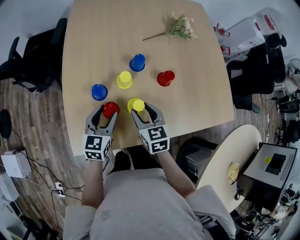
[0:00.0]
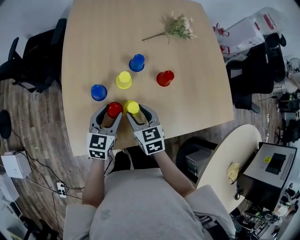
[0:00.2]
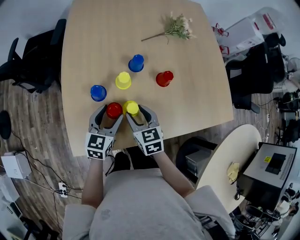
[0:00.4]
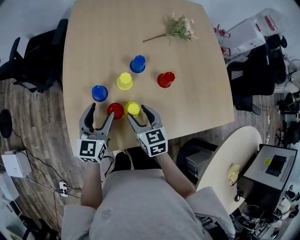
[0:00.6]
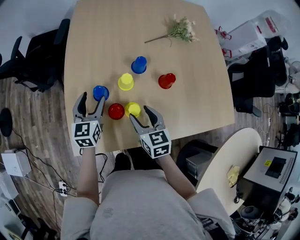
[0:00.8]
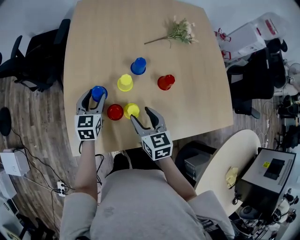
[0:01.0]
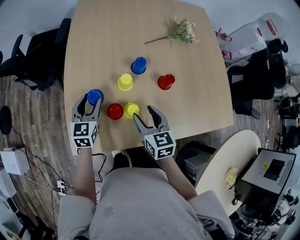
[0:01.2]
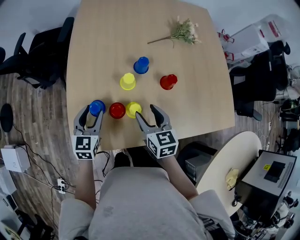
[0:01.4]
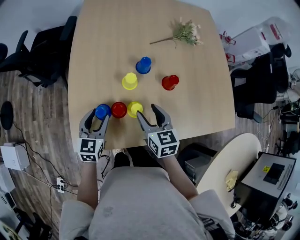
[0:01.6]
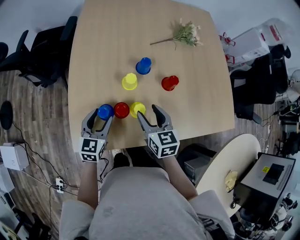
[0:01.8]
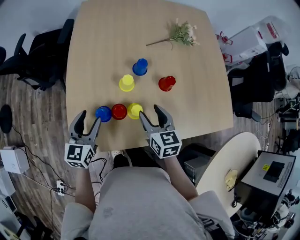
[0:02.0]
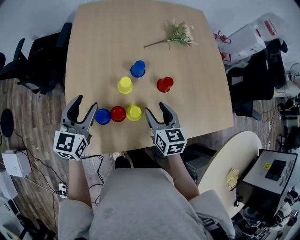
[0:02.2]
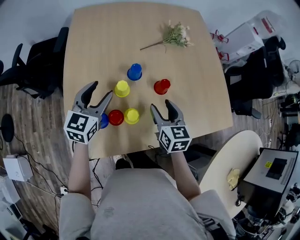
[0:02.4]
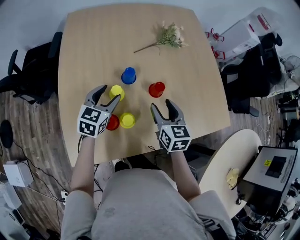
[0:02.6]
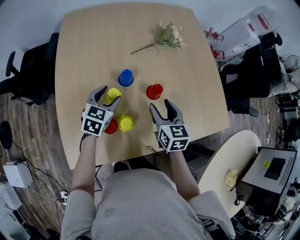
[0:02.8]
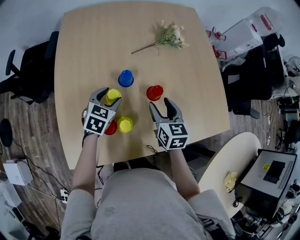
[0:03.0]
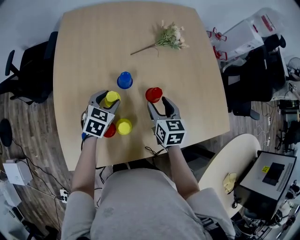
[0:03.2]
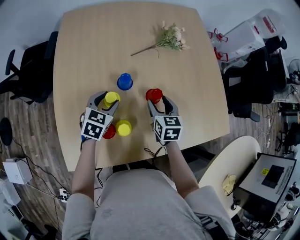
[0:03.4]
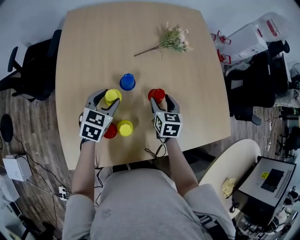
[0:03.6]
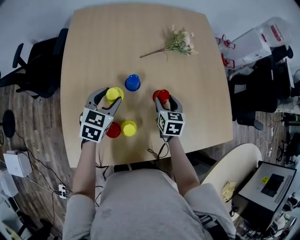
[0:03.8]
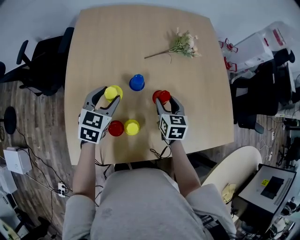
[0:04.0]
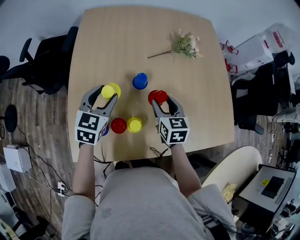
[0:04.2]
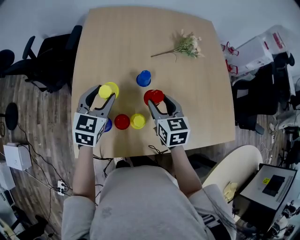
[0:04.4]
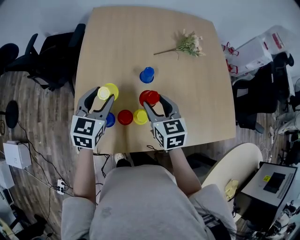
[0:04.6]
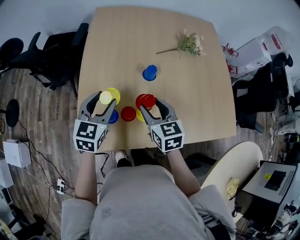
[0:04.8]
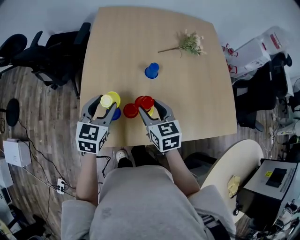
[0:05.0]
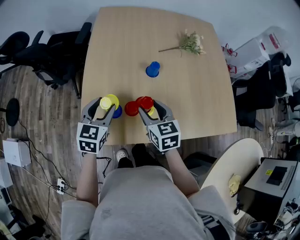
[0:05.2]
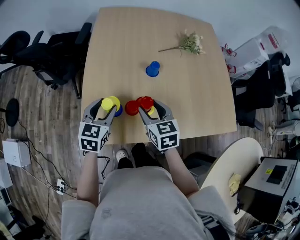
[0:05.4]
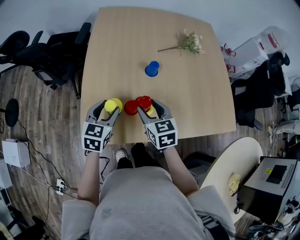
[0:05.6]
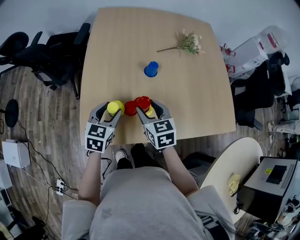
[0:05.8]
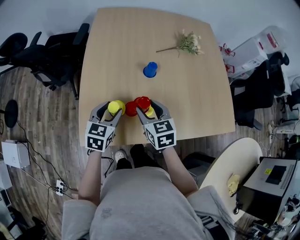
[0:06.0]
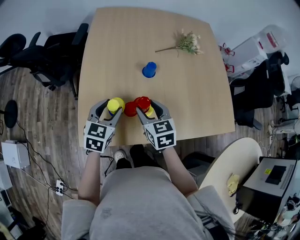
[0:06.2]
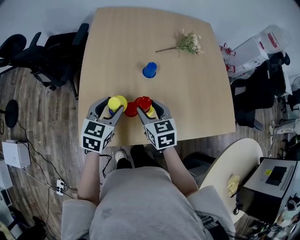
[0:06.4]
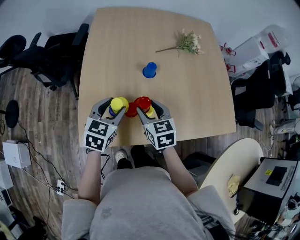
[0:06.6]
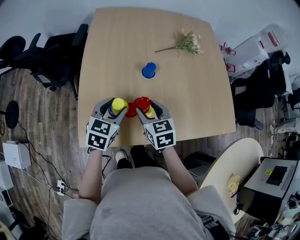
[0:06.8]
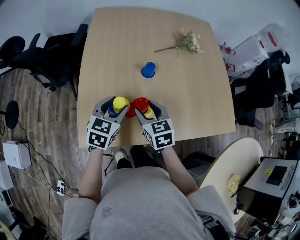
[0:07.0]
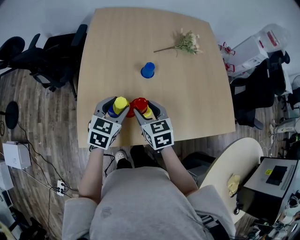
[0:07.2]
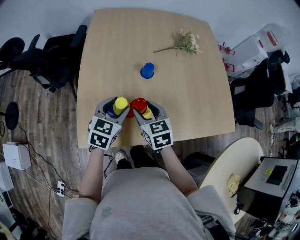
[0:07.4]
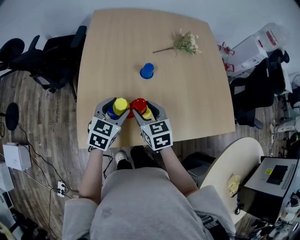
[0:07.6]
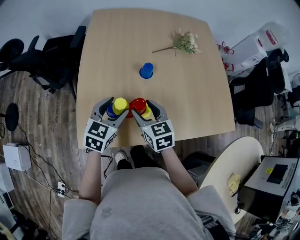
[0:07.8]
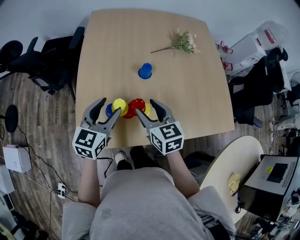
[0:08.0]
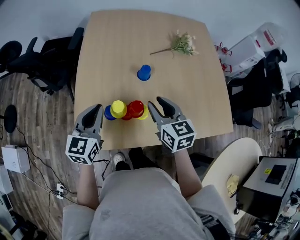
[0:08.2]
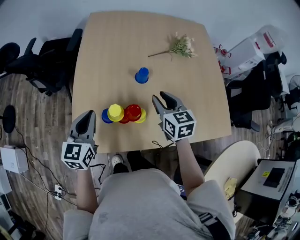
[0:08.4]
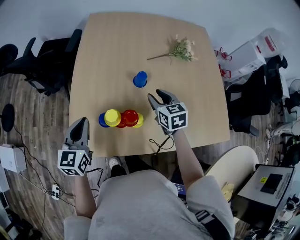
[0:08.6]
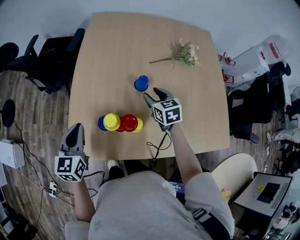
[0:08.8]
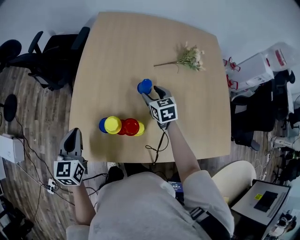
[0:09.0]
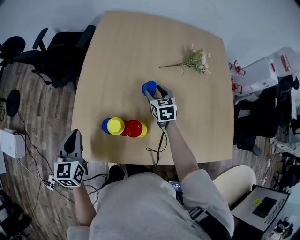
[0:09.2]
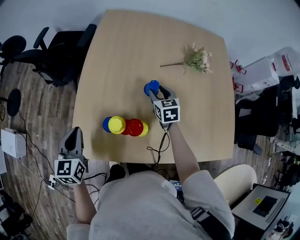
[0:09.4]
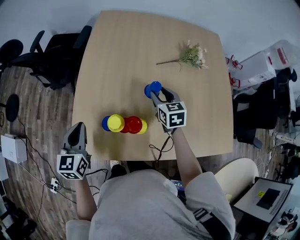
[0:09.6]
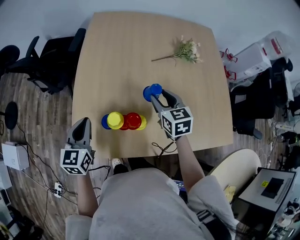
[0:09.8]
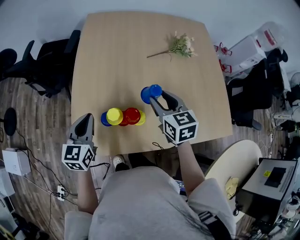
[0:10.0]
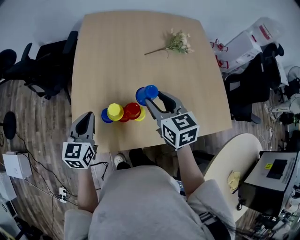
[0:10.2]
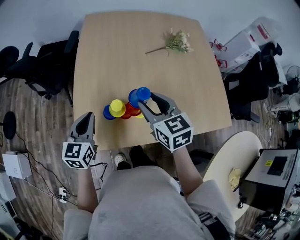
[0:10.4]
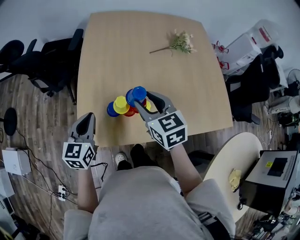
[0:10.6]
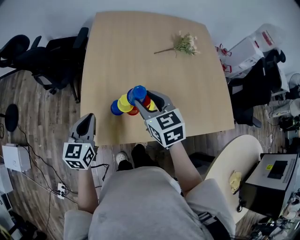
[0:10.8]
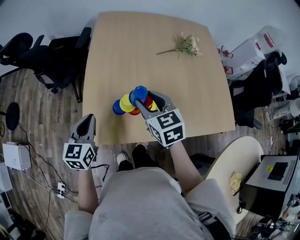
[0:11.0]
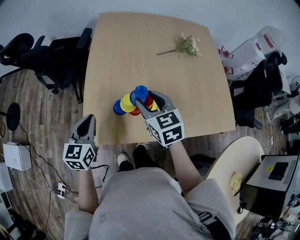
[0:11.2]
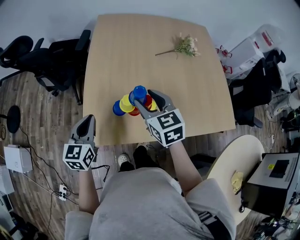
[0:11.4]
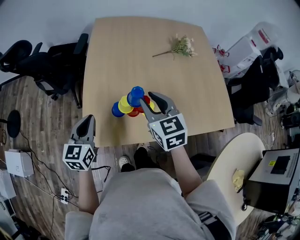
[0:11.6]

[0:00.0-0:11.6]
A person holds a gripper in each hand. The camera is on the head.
0:00.0 to 0:01.4: The left gripper heads to the left, covering roughly 5 cm.
0:01.4 to 0:02.8: The grippers both shift to the right and forward by approximately 15 cm. The left gripper rotates some 20 degrees.
0:02.8 to 0:04.4: The right gripper heads to the left, covering about 10 cm, and reaches approximately 10 cm downward, then returns. The left gripper travels upward and to the left by about 15 cm.
0:04.4 to 0:05.8: The left gripper travels backward and downward by roughly 15 cm, while the right gripper moves to the left and backward, some 15 cm.
0:05.8 to 0:07.2: The left gripper shifts roughly 5 cm to the right.
0:07.2 to 0:08.8: The left gripper heads to the left, covering some 10 cm, swivels some 30 degrees, and closes up. Meanwhile the right gripper travels forward and to the right by roughly 15 cm.
0:08.8 to 0:10.2: The right gripper moves upward and backward, roughly 15 cm.
0:10.2 to 0:11.6: The two grippers go approximately 5 cm to the left.

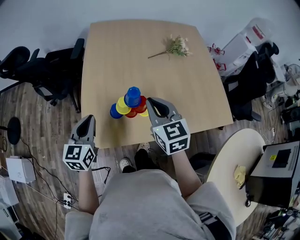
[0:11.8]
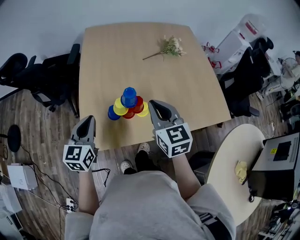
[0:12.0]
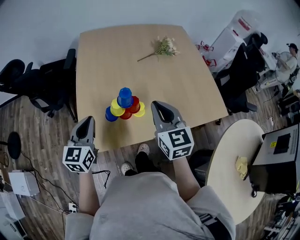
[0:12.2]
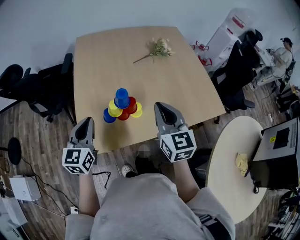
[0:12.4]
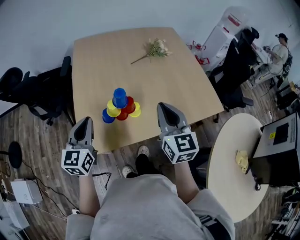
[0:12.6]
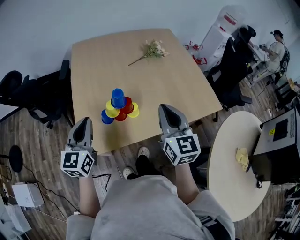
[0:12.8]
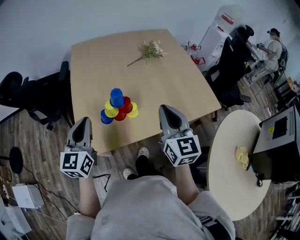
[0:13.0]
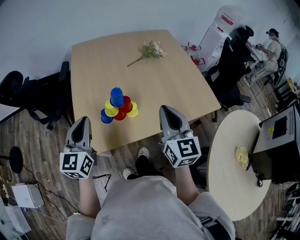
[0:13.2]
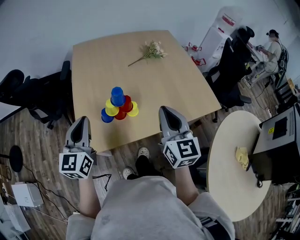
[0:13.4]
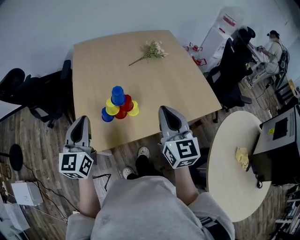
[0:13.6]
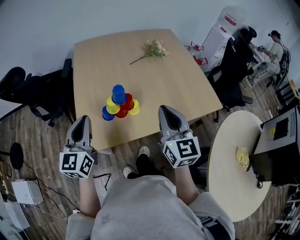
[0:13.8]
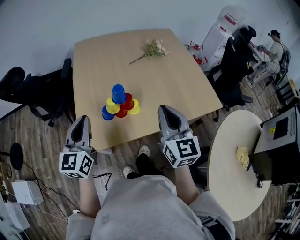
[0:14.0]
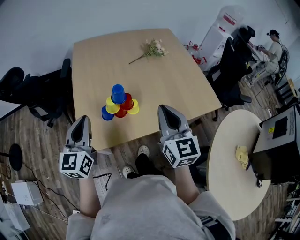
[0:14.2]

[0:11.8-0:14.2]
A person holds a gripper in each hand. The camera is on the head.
0:11.8 to 0:13.0: The right gripper heads to the right, backward and upward, covering some 15 cm, and rotates approximately 30 degrees. Meanwhile the left gripper heads upward, covering some 10 cm.
0:13.0 to 0:14.2: There are only small adjustments of the grippers.

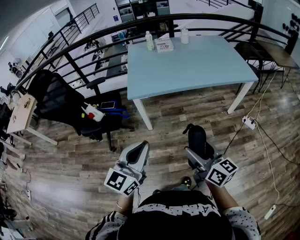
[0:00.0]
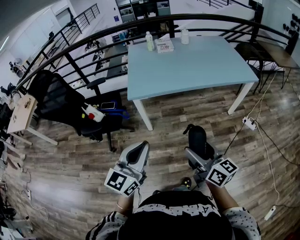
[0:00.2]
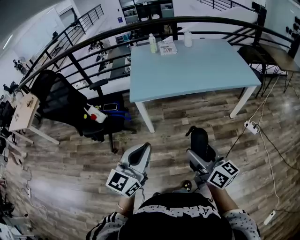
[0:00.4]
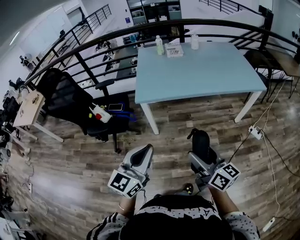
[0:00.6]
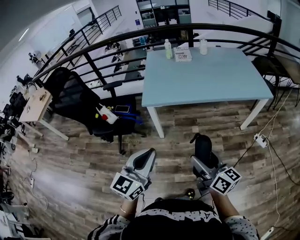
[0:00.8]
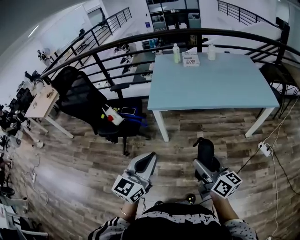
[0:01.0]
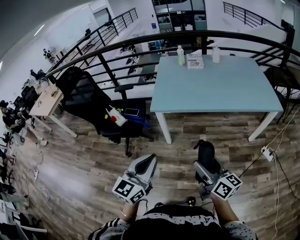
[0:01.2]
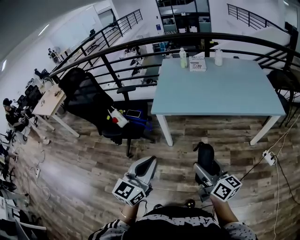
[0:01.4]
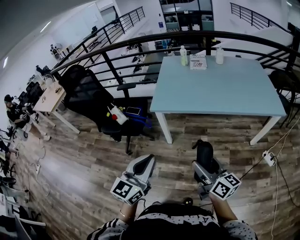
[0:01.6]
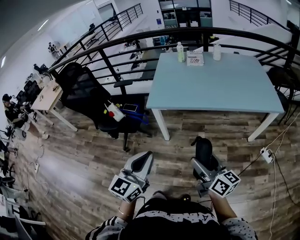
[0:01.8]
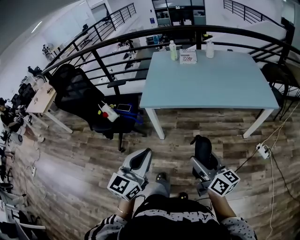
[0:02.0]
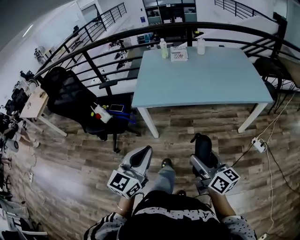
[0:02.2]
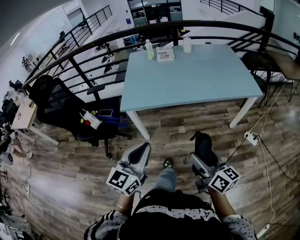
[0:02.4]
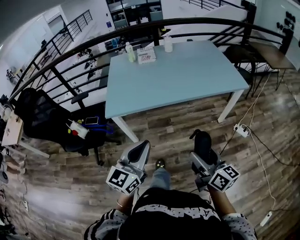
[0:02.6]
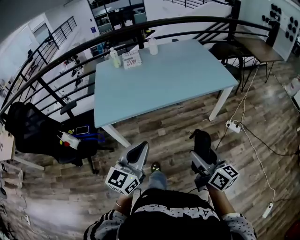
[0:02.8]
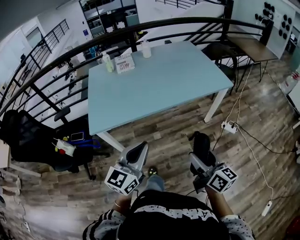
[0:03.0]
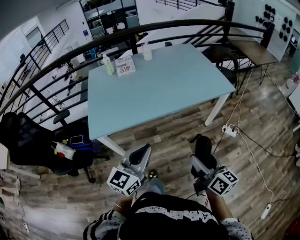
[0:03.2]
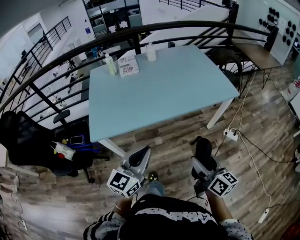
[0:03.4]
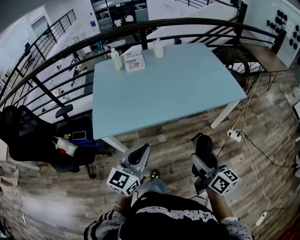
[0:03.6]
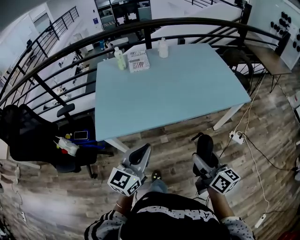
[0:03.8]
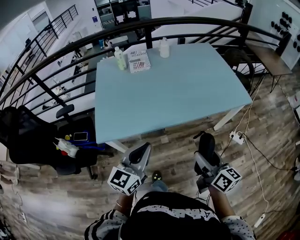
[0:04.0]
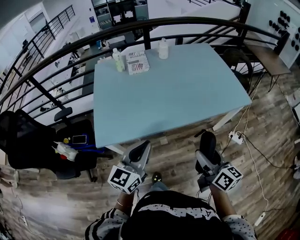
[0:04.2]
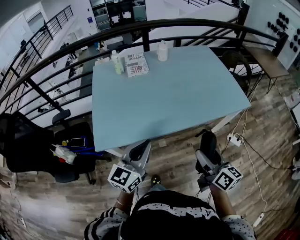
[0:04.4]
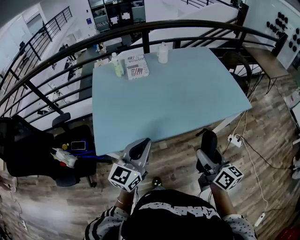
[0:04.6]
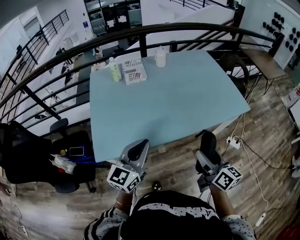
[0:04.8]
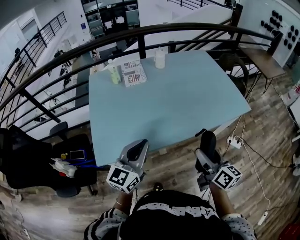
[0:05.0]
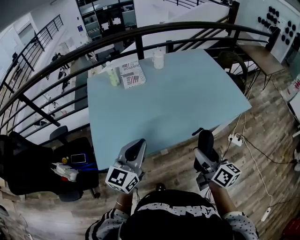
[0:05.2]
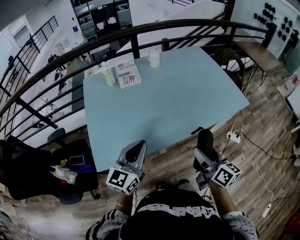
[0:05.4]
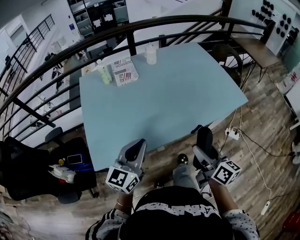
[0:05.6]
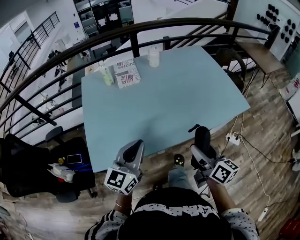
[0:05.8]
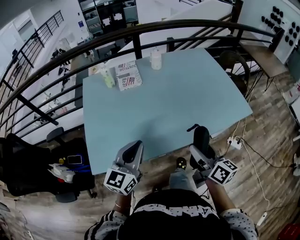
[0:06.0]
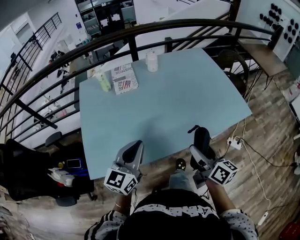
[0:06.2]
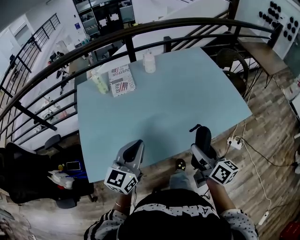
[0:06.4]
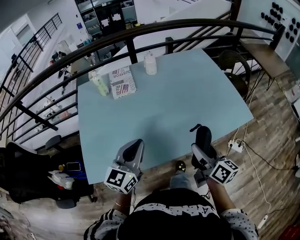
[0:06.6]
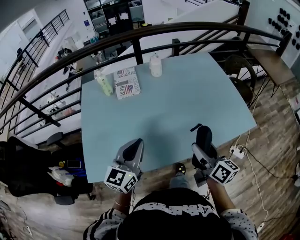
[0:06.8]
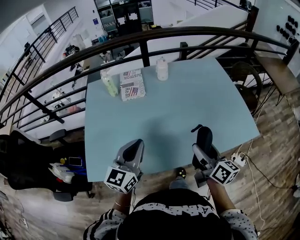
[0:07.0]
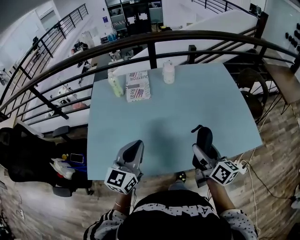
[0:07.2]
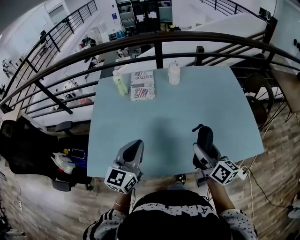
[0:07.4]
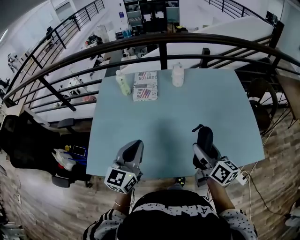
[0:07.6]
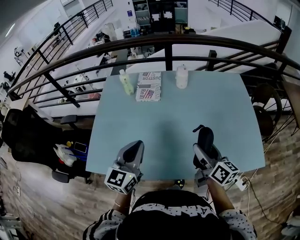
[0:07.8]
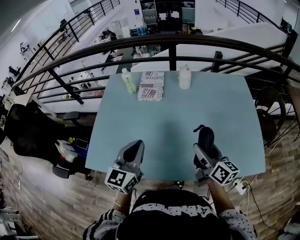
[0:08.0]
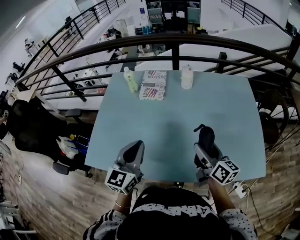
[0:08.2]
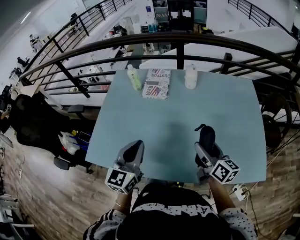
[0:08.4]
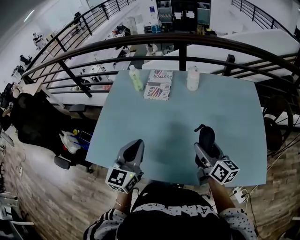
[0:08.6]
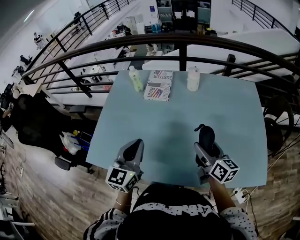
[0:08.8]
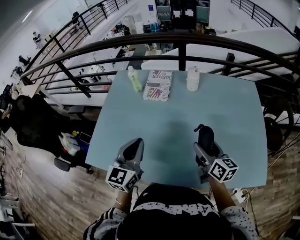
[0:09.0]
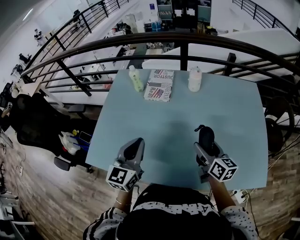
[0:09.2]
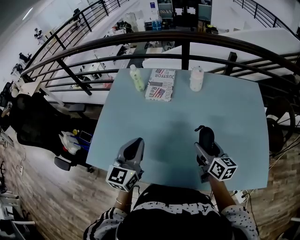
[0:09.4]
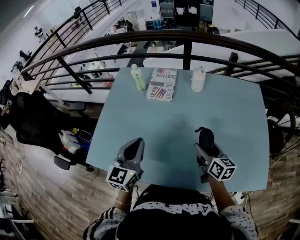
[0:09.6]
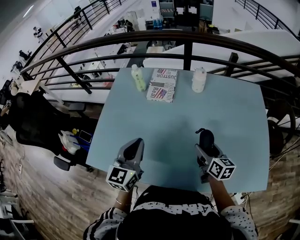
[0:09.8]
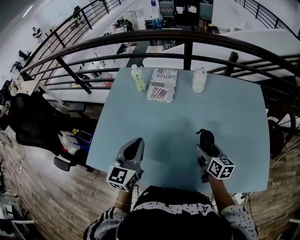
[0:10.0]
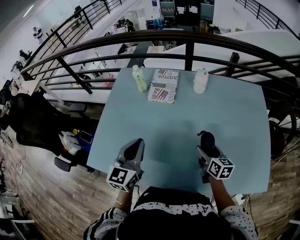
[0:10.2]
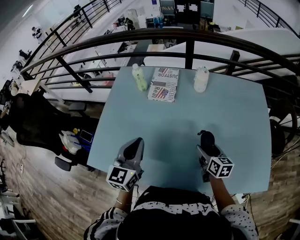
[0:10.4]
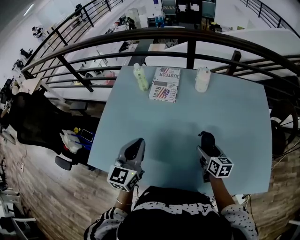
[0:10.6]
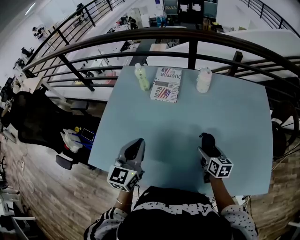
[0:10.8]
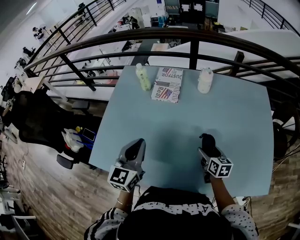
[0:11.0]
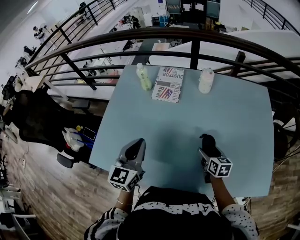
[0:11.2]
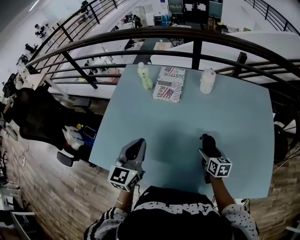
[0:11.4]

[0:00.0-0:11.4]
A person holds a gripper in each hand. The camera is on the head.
0:00.0 to 0:01.4: The right gripper moves forward, some 5 cm.
0:01.4 to 0:02.8: The left gripper goes about 20 cm to the right and forward, and changes its angle by approximately 20 degrees; the right gripper heads to the right, covering about 20 cm, and turns by approximately 20 degrees.
0:02.8 to 0:04.2: The right gripper shifts about 20 cm forward; the left gripper is displaced forward and to the left by about 25 cm.
0:04.2 to 0:05.6: Both grippers travel together forward, about 10 cm.
0:05.6 to 0:07.2: Both grippers travel together forward, about 20 cm.
0:07.2 to 0:08.6: The right gripper travels forward by roughly 10 cm; the left gripper rotates approximately 20 degrees.
0:08.6 to 0:10.0: The right gripper shifts some 10 cm downward and forward. The left gripper is displaced forward by some 5 cm.
0:10.0 to 0:11.4: The right gripper moves downward, about 10 cm.
